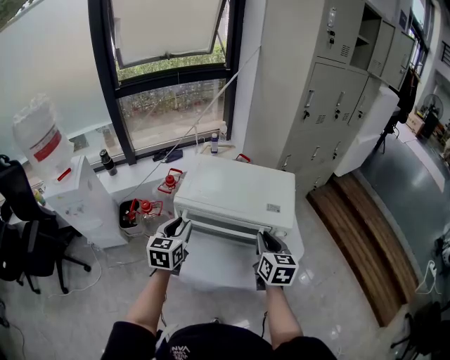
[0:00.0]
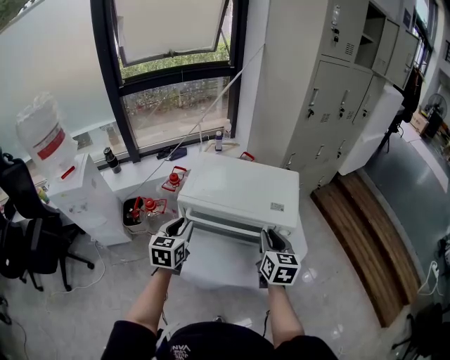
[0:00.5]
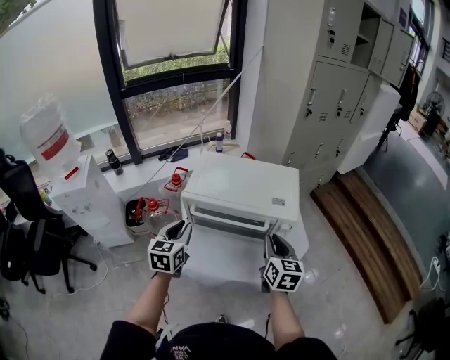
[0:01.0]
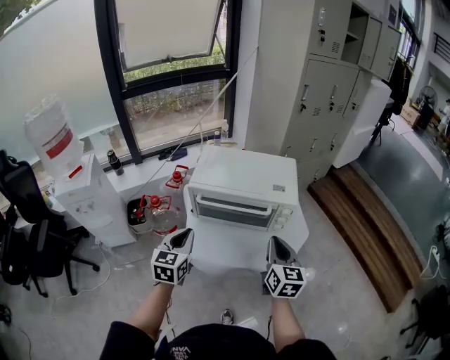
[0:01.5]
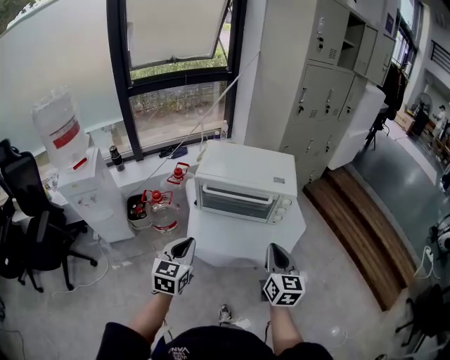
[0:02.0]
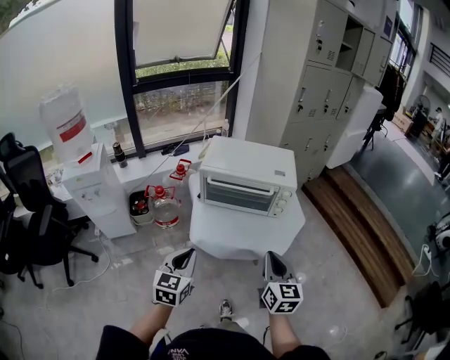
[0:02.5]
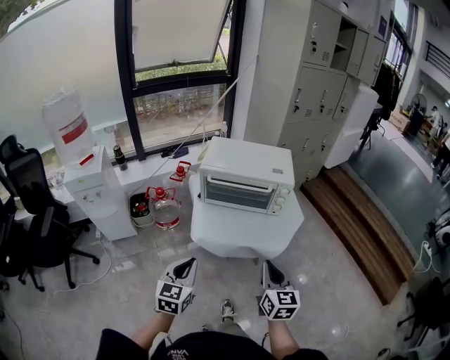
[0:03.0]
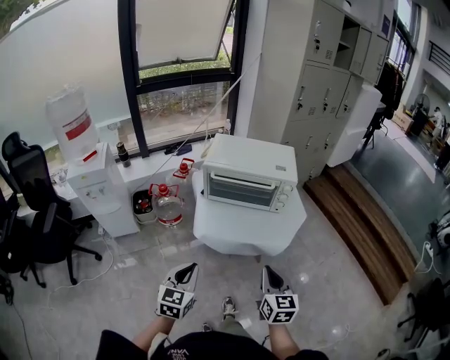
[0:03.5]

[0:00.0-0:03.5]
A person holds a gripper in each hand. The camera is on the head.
0:00.0 to 0:02.0: The two grippers go approximately 20 cm backward. The left gripper closes up.
0:02.0 to 0:03.5: Both grippers travel together backward, some 15 cm.

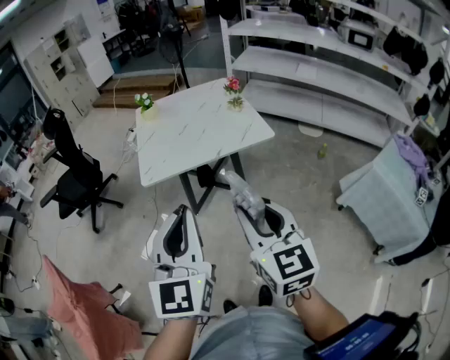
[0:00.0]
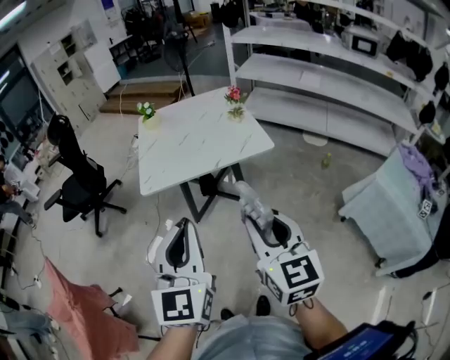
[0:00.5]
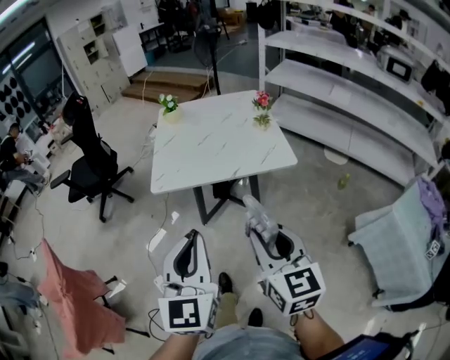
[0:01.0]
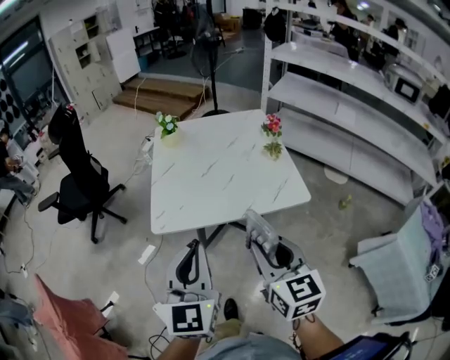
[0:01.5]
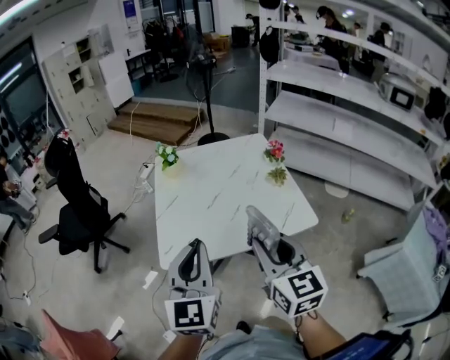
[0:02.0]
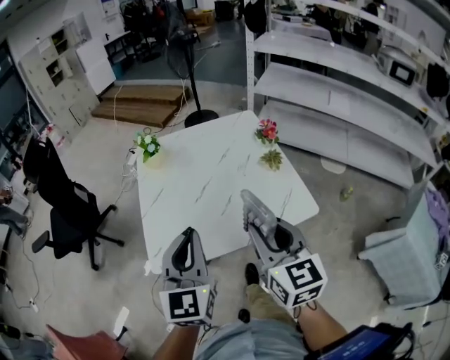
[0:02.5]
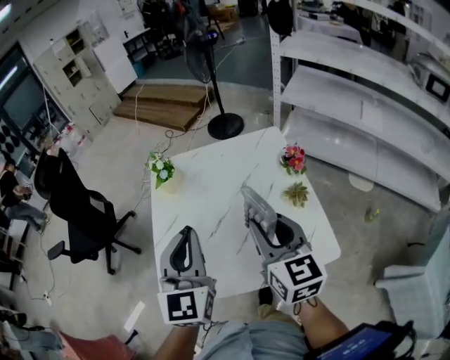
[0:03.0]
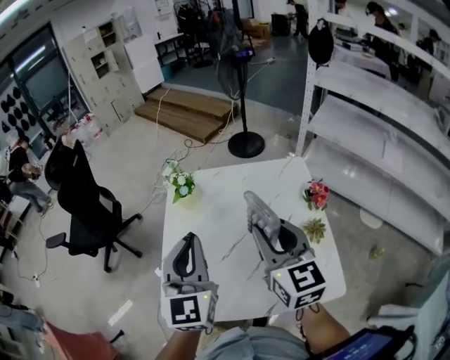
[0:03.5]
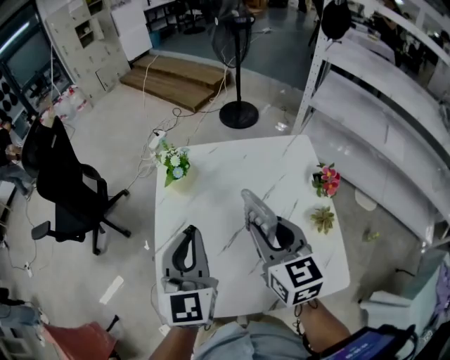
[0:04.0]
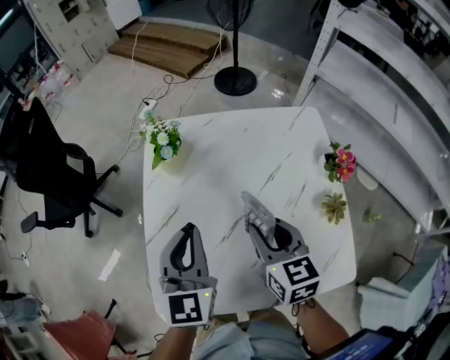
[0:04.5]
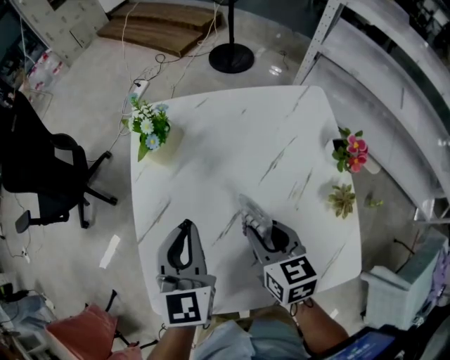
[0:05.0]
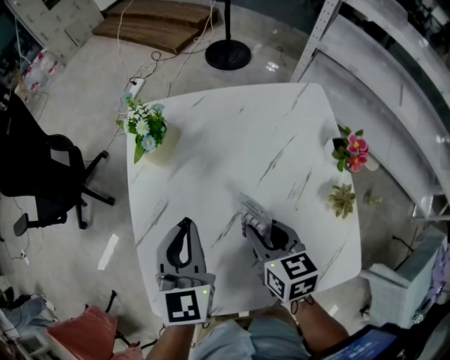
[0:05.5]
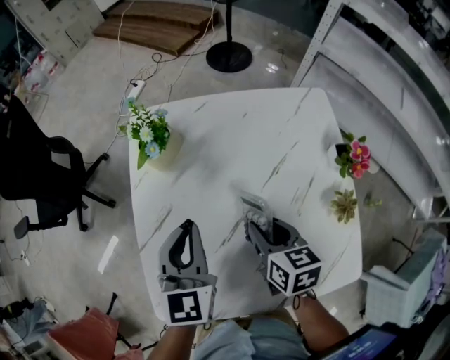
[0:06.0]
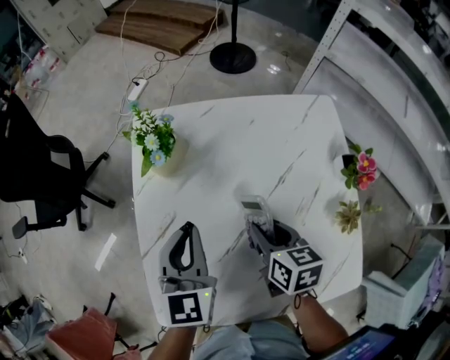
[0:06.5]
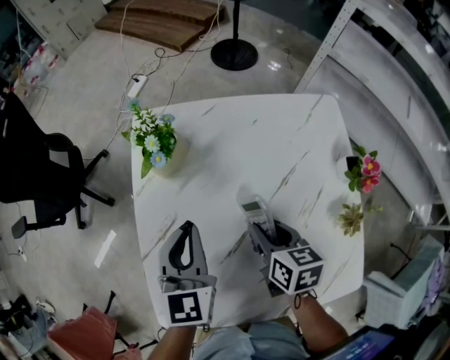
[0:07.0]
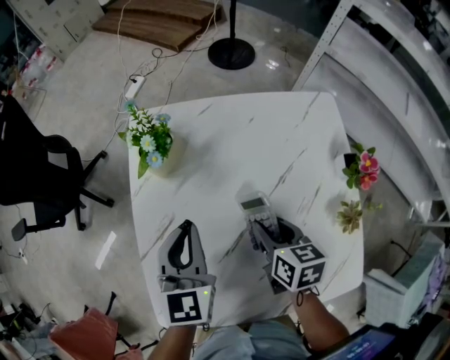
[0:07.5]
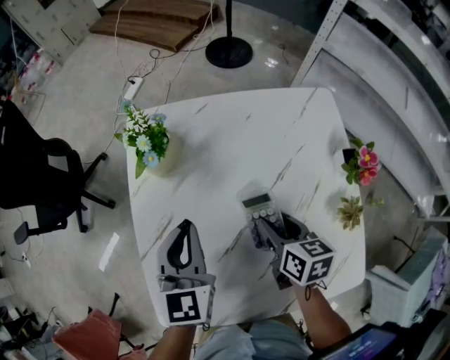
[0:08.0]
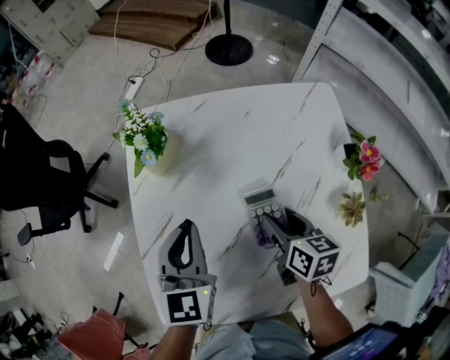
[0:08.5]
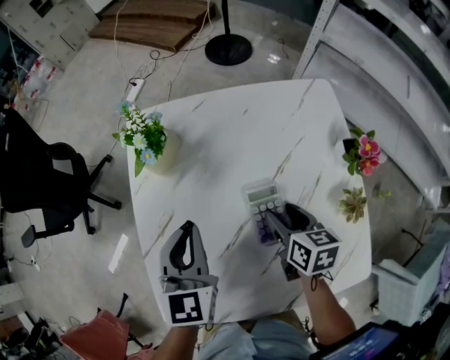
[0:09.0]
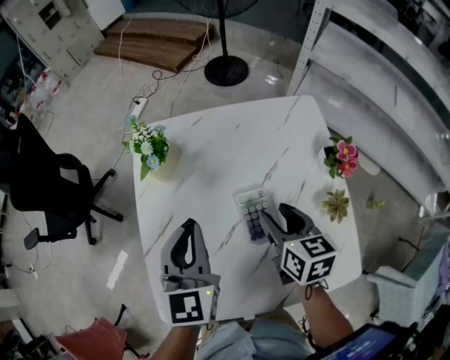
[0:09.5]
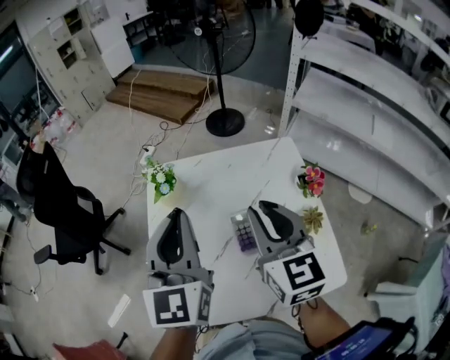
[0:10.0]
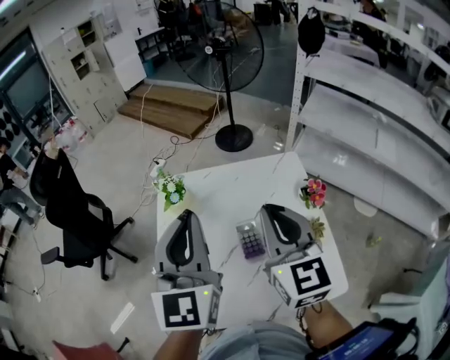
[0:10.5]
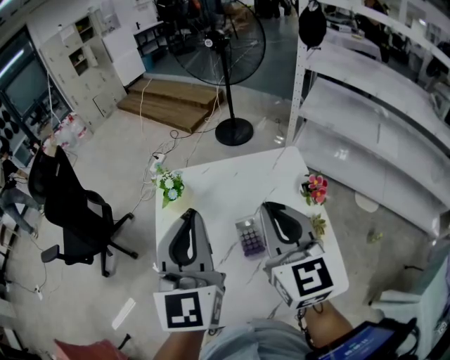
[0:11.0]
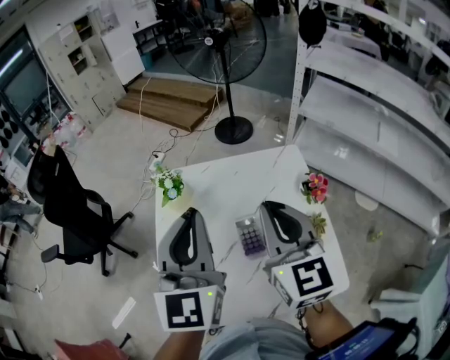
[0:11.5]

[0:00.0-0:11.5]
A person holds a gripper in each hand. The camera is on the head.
0:00.0 to 0:02.0: Both grippers travel together forward, approximately 30 cm.
0:02.0 to 0:04.0: Both grippers travel together forward, roughly 30 cm.
0:04.0 to 0:06.0: The right gripper is displaced downward by approximately 20 cm, and changes its angle by some 30 degrees. The left gripper heads downward and forward, covering roughly 15 cm.
0:06.0 to 0:07.5: The grippers move only a little.
0:07.5 to 0:09.5: The grippers both shift upward by about 5 cm.
0:09.5 to 0:11.5: The two grippers go approximately 25 cm upward. The right gripper tilts its fingers some 30 degrees upward, and closes its fingers, while the left gripper changes its angle by roughly 20 degrees.

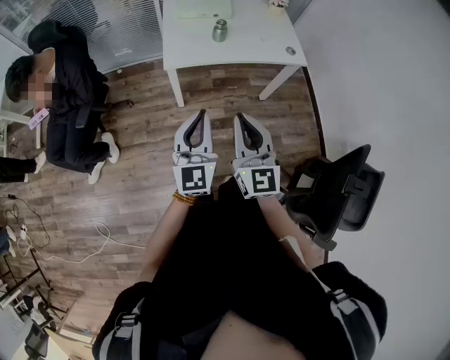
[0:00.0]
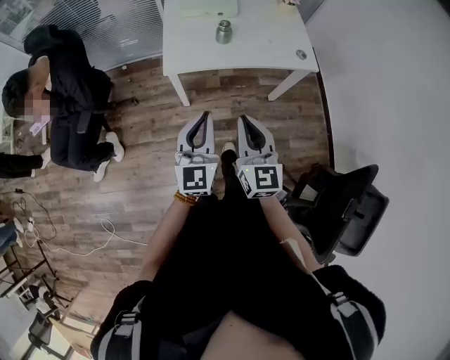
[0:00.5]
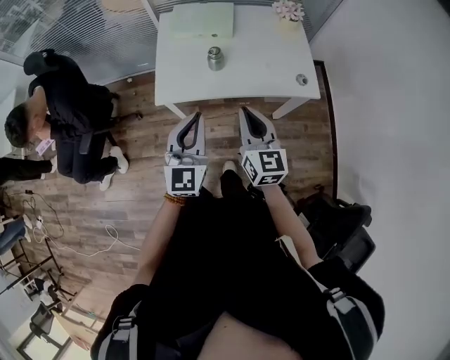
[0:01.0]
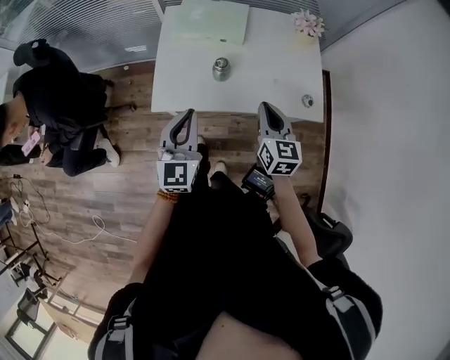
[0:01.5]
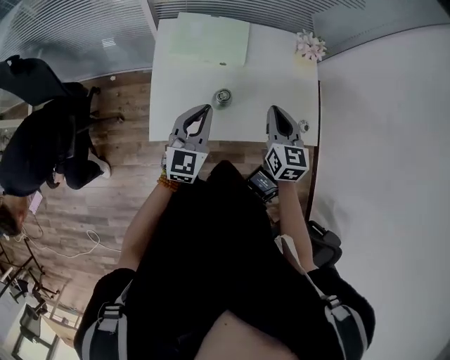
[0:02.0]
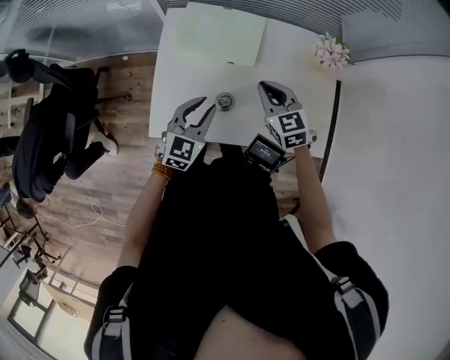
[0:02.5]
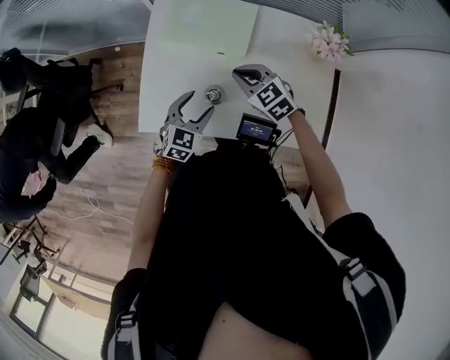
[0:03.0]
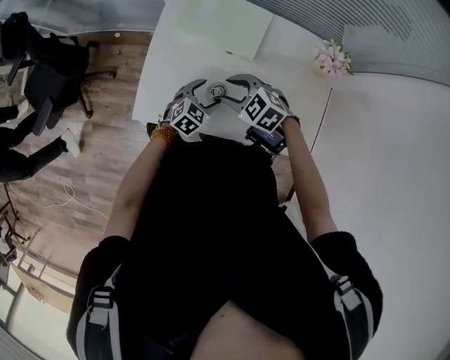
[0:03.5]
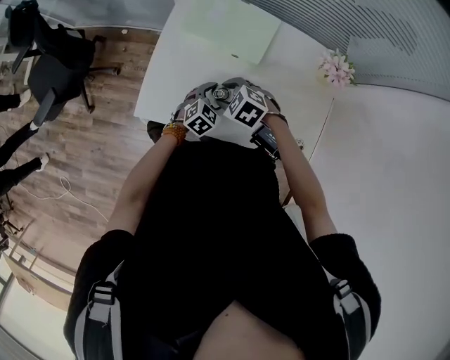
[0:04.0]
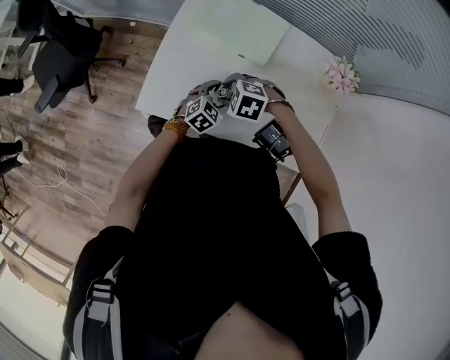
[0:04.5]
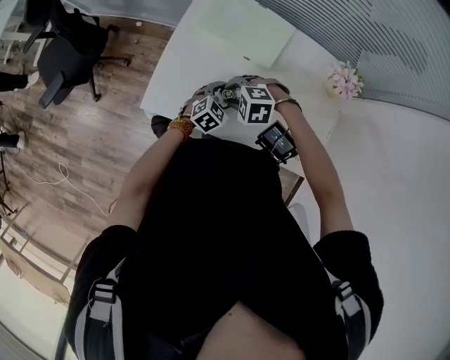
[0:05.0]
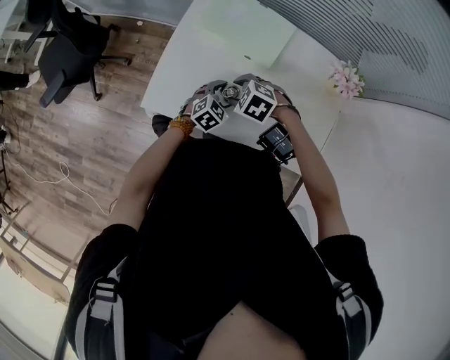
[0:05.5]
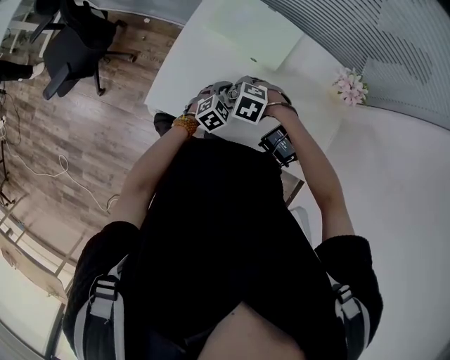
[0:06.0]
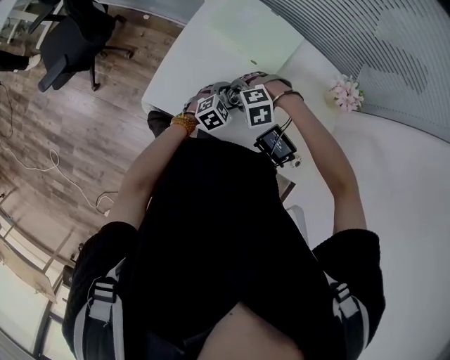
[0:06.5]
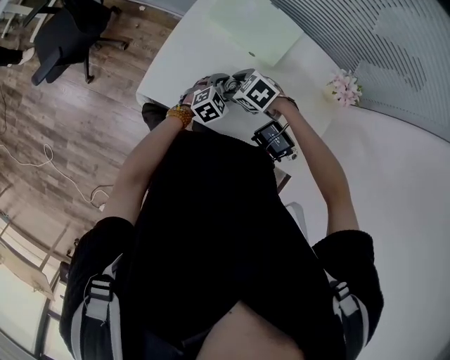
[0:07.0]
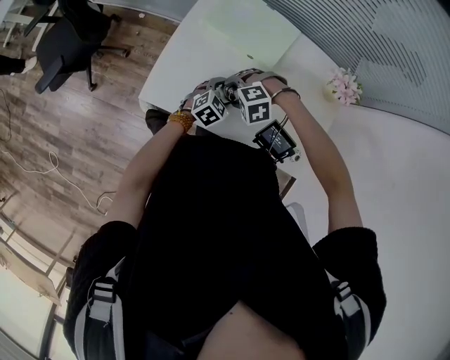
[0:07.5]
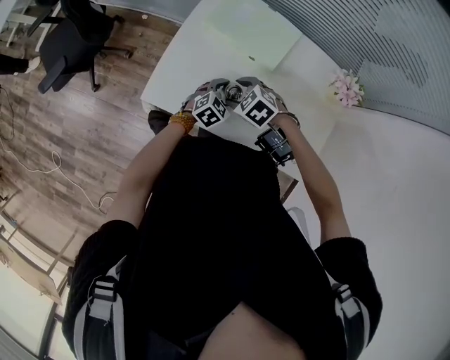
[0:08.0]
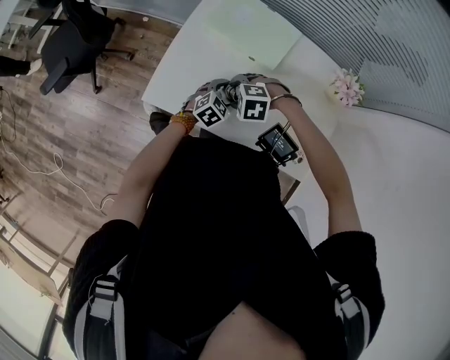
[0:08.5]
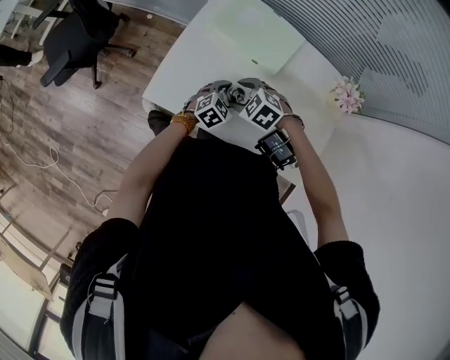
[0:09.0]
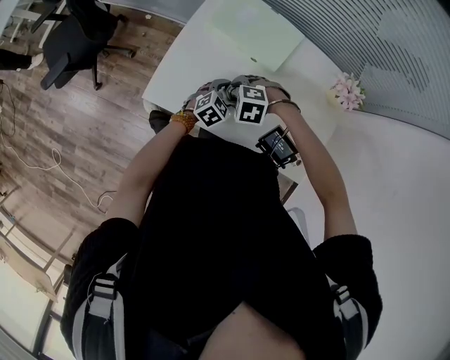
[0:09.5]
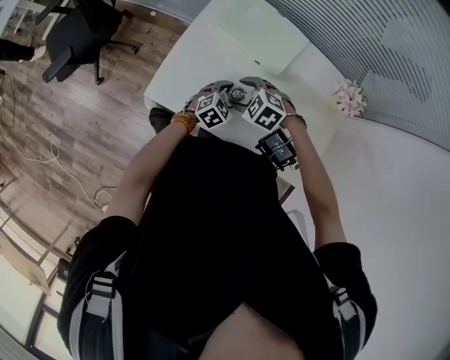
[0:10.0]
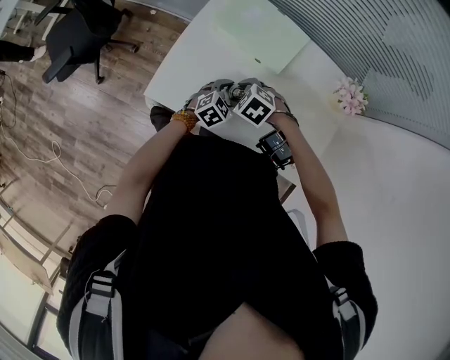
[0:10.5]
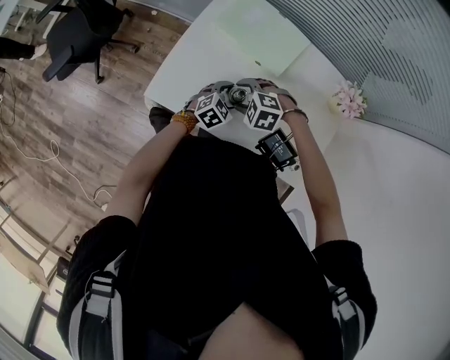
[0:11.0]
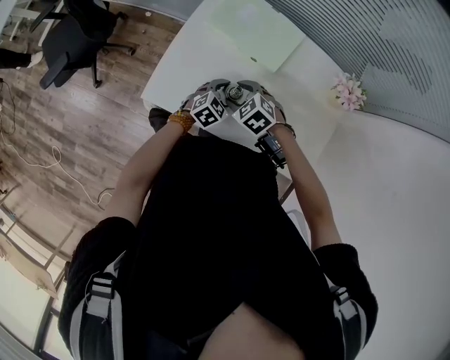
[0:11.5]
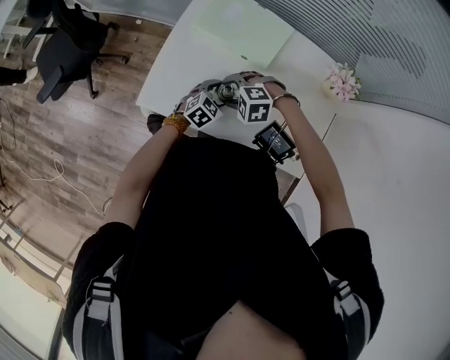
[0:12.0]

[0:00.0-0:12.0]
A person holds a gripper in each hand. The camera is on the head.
0:00.0 to 0:02.0: The pair of grippers is taken forward, about 50 cm. The right gripper swivels some 20 degrees.
0:02.0 to 0:04.0: Both grippers travel together downward, roughly 20 cm. The left gripper points its fingers about 40 degrees further downward, and opens up; the right gripper points its fingers some 40 degrees further downward, and opens up.
0:04.0 to 0:06.0: The right gripper rotates some 20 degrees.
0:10.0 to 0:12.0: The right gripper rotates about 20 degrees.
